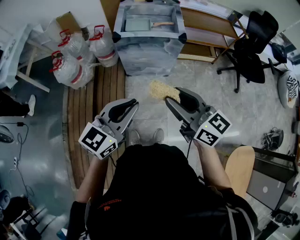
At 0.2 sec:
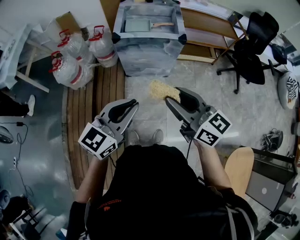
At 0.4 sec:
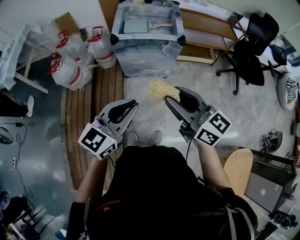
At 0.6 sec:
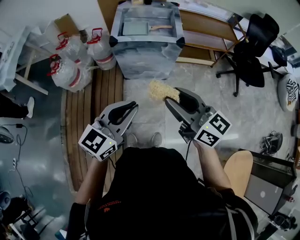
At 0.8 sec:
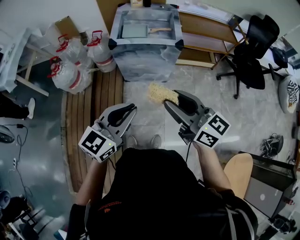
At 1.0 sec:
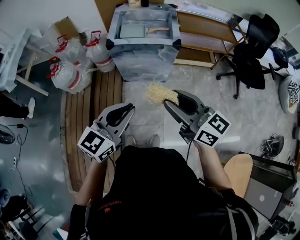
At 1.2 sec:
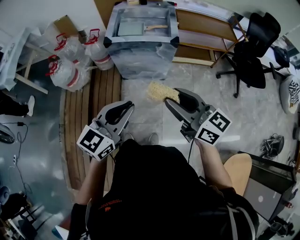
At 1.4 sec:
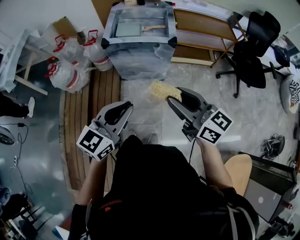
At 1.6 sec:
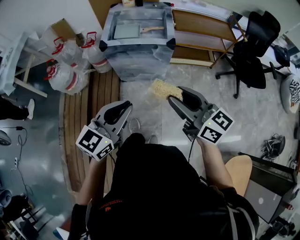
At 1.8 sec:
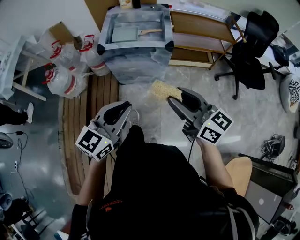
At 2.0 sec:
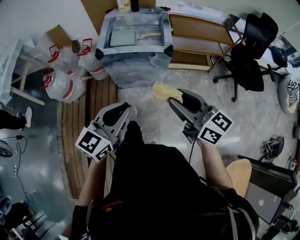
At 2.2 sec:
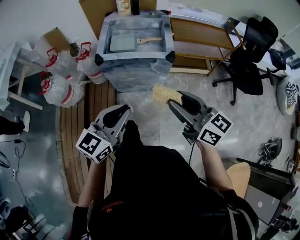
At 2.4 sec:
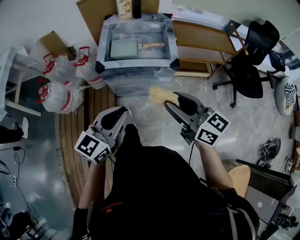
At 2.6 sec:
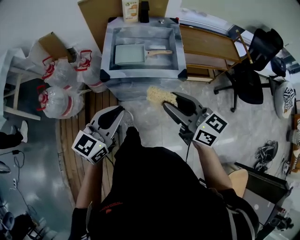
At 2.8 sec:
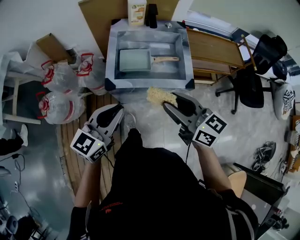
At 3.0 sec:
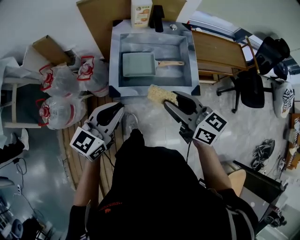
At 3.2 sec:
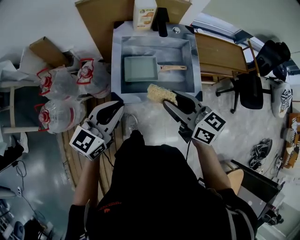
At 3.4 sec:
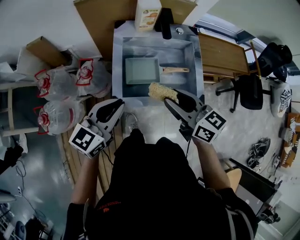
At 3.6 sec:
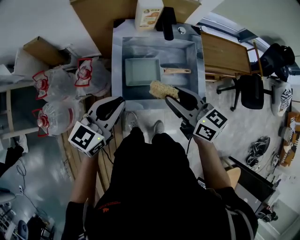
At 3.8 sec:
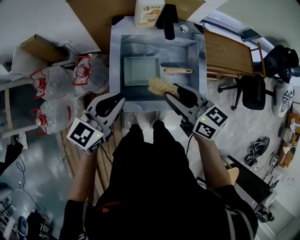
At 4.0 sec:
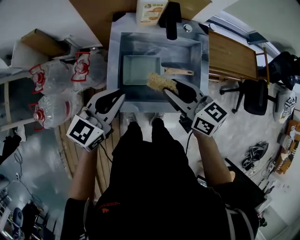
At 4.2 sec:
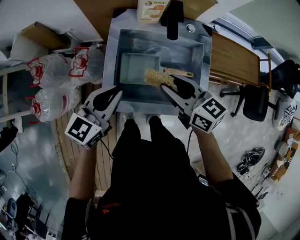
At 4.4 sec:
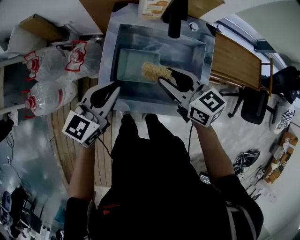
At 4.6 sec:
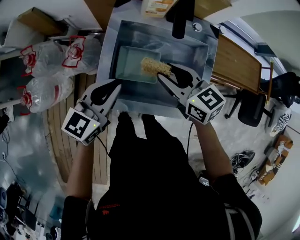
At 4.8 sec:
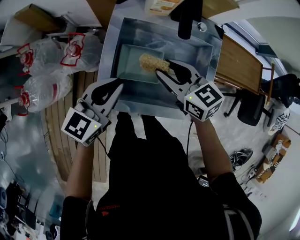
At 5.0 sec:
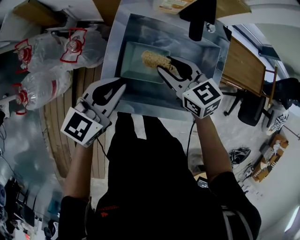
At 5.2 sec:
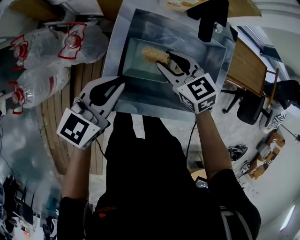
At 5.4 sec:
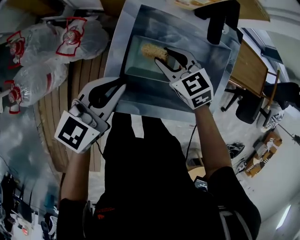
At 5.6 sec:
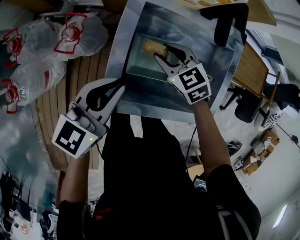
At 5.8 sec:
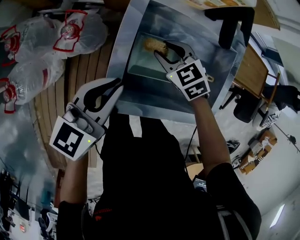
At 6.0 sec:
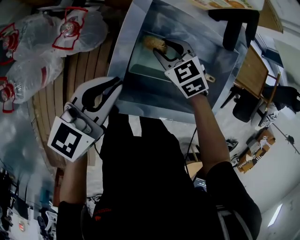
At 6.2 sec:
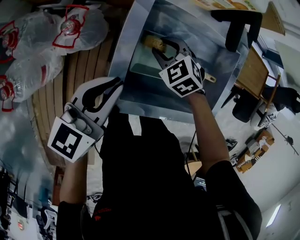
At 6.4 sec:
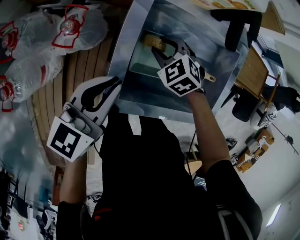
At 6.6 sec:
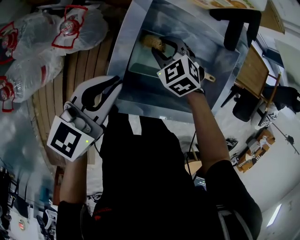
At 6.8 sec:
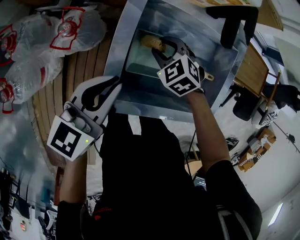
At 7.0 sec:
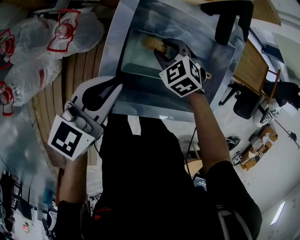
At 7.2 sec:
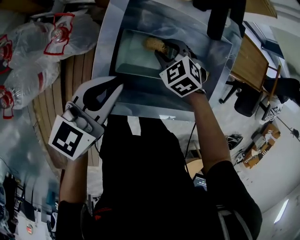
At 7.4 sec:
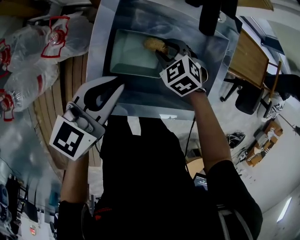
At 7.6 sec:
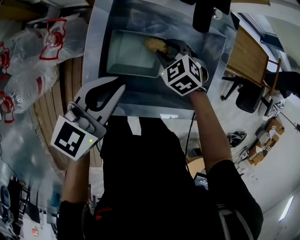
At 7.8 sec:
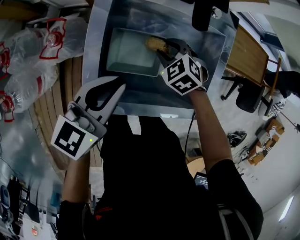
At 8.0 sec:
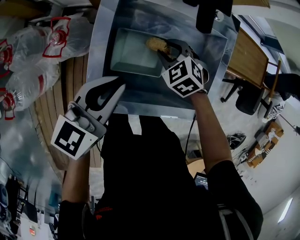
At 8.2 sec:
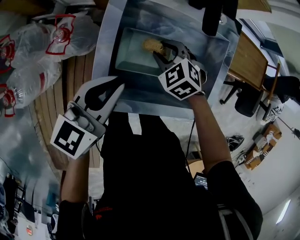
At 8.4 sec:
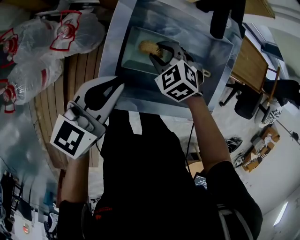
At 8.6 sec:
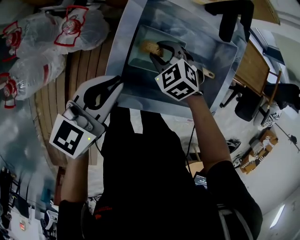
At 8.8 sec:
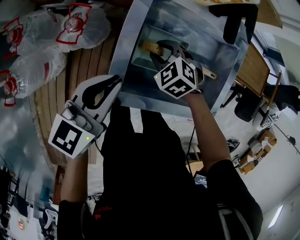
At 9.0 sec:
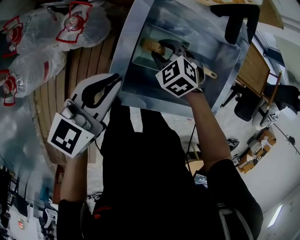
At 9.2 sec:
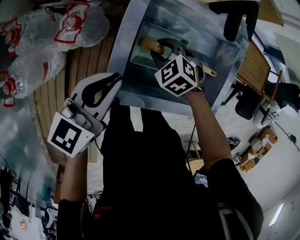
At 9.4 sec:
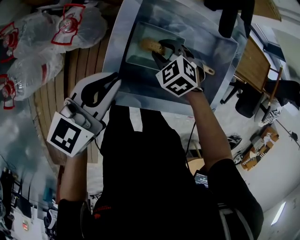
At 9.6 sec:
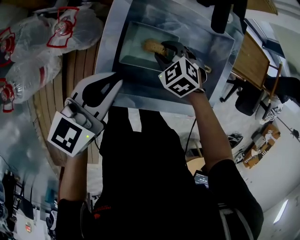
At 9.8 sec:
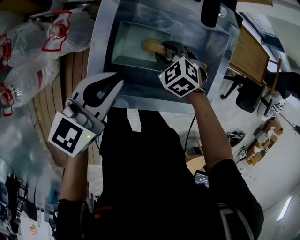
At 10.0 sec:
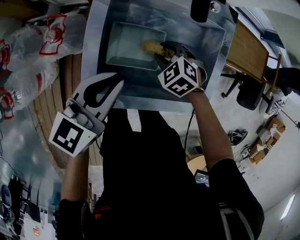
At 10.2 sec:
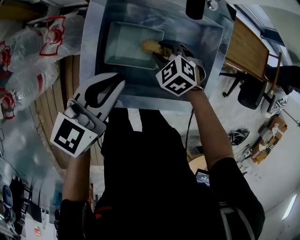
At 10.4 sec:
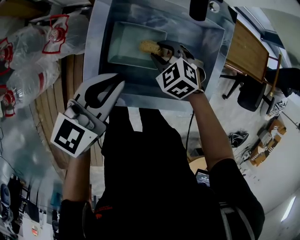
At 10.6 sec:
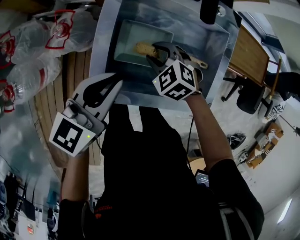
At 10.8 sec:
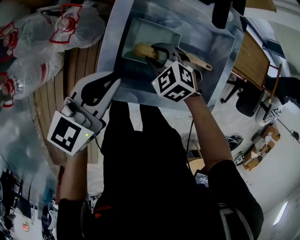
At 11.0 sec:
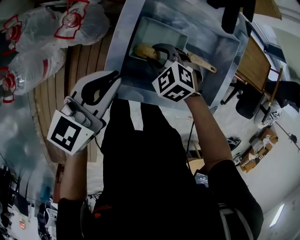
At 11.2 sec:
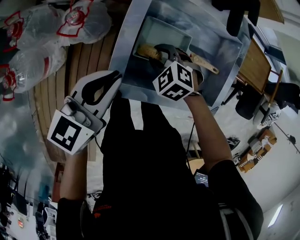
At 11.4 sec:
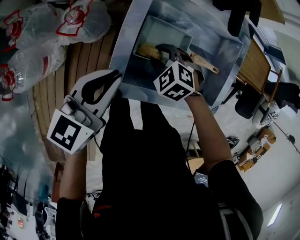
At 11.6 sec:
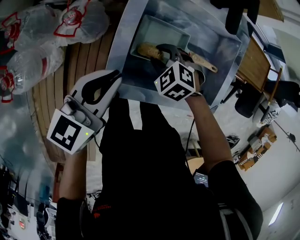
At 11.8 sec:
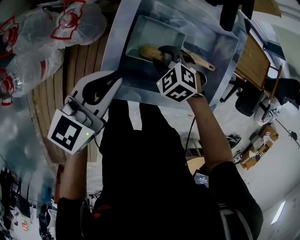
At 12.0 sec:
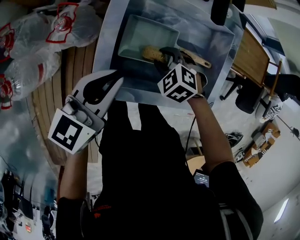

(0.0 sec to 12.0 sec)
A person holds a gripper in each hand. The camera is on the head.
0.0 sec - 1.6 sec: Both grippers move to the right and forward, some 10 cm.
1.6 sec - 3.0 sec: Both grippers are carried forward and to the left, about 40 cm.
3.0 sec - 4.4 sec: The two grippers go roughly 20 cm forward and downward.
4.4 sec - 6.0 sec: The right gripper heads downward, to the left and forward, covering roughly 25 cm, and points its fingers approximately 30 degrees further downward. Meanwhile the left gripper shifts approximately 10 cm downward and to the left.
6.0 sec - 7.6 sec: The two grippers go approximately 10 cm to the right.
7.6 sec - 9.0 sec: The grippers both shift to the left by about 10 cm.
9.0 sec - 10.4 sec: Both grippers move to the right, about 10 cm.
10.4 sec - 12.0 sec: The right gripper travels to the left and back again, some 10 cm each way.

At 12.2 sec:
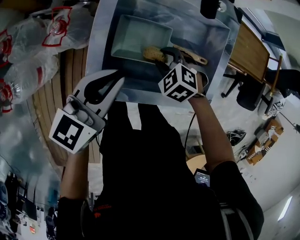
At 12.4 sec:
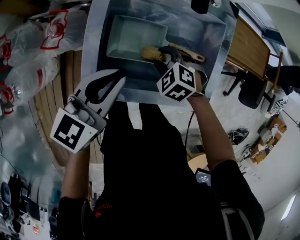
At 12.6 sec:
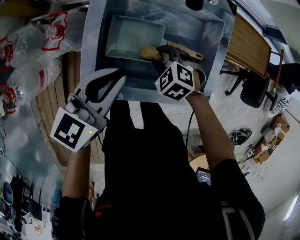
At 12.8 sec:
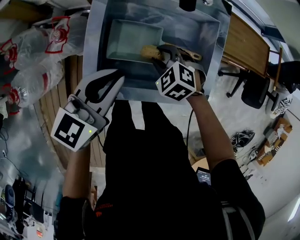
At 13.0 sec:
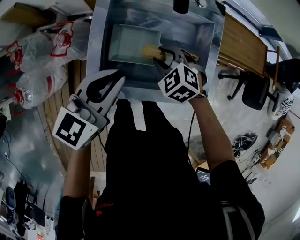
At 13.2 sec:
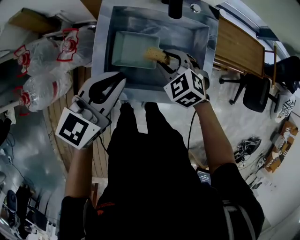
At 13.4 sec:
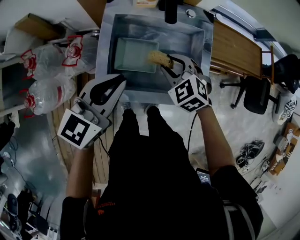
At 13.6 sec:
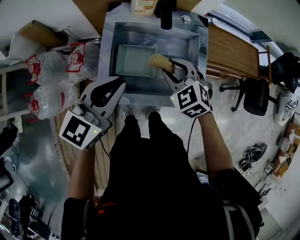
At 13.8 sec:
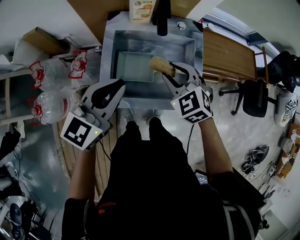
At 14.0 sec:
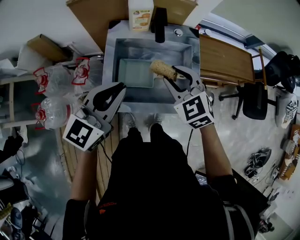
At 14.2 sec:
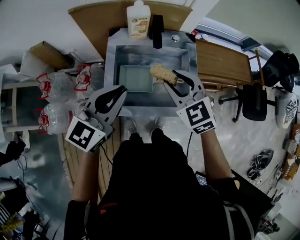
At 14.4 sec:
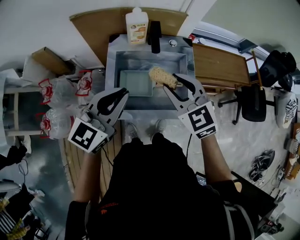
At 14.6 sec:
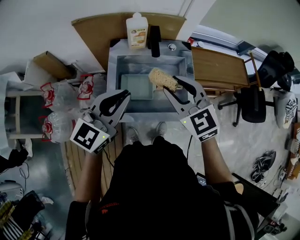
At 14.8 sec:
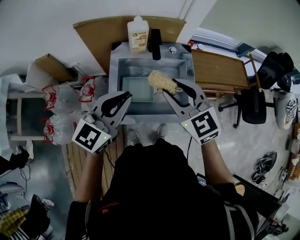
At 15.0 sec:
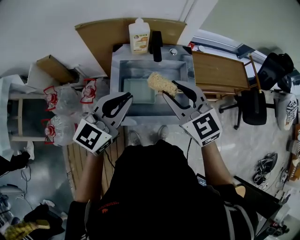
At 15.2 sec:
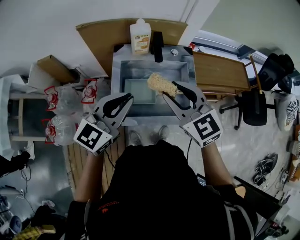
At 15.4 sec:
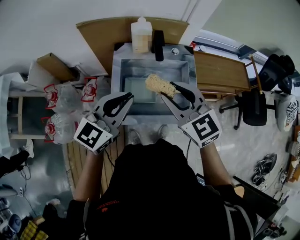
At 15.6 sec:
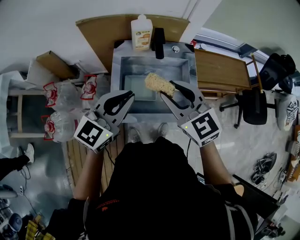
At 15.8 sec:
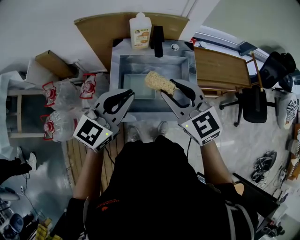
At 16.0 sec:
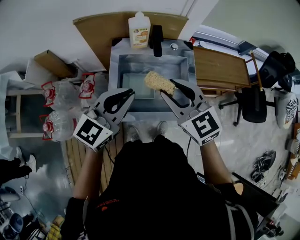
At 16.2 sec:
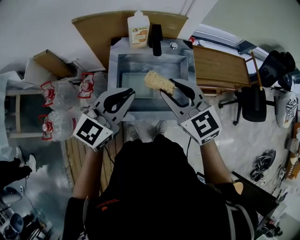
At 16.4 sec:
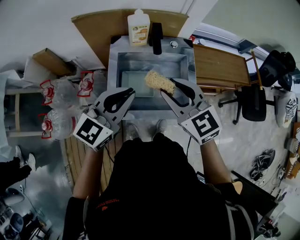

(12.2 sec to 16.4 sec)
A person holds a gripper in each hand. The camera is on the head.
12.2 sec - 13.6 sec: The grippers both shift upward by approximately 15 cm. The right gripper swivels about 30 degrees.
13.6 sec - 15.0 sec: The right gripper goes some 20 cm upward, and swivels some 30 degrees, while the left gripper moves upward, about 10 cm.
15.0 sec - 16.4 sec: The grippers stay close to where they were, moving slightly.
